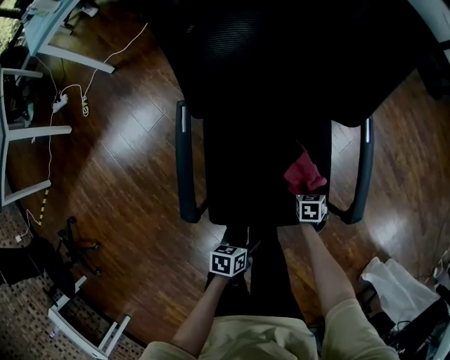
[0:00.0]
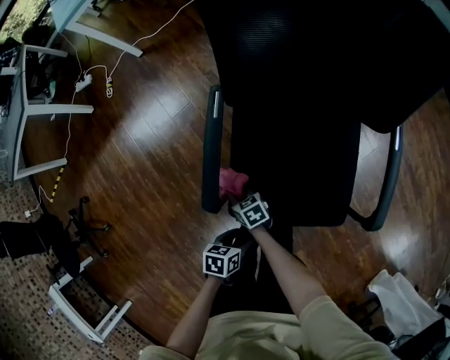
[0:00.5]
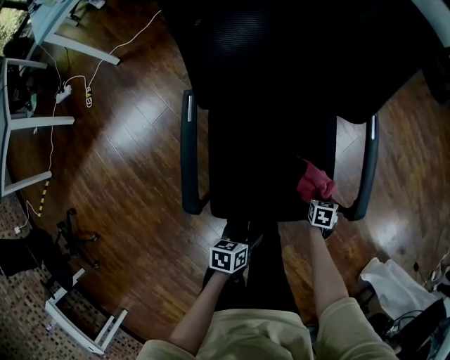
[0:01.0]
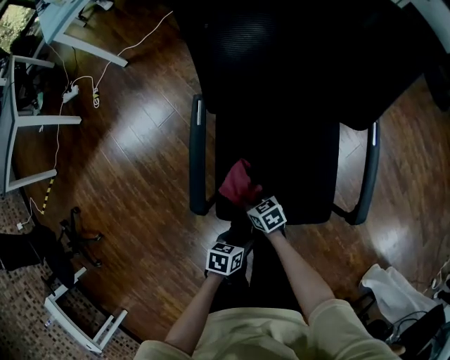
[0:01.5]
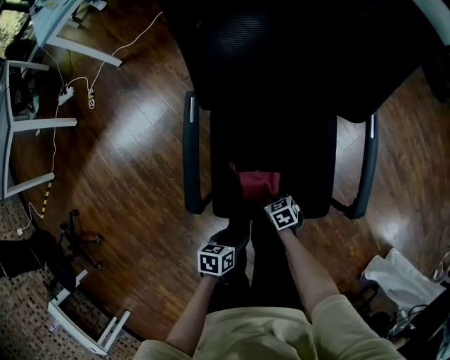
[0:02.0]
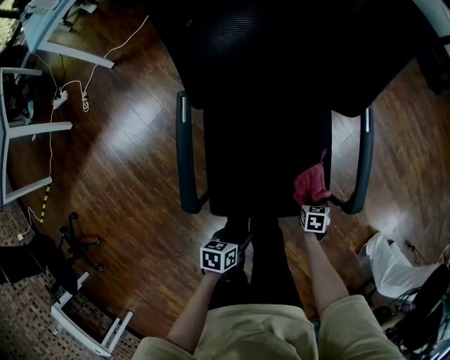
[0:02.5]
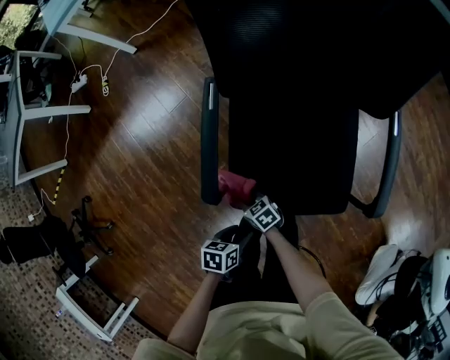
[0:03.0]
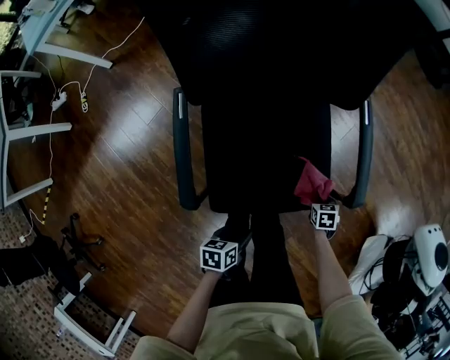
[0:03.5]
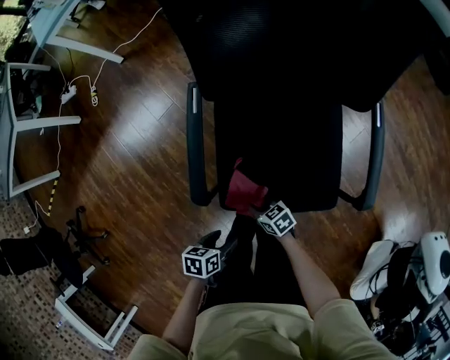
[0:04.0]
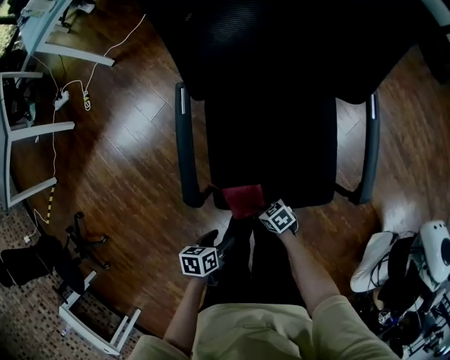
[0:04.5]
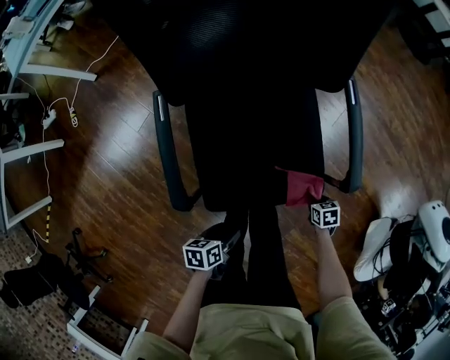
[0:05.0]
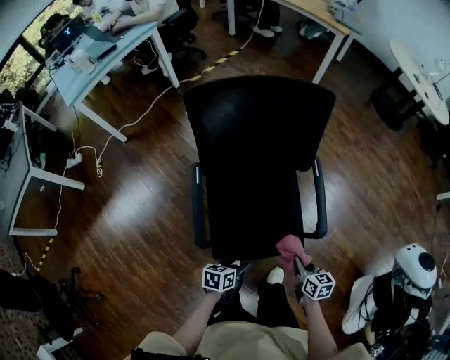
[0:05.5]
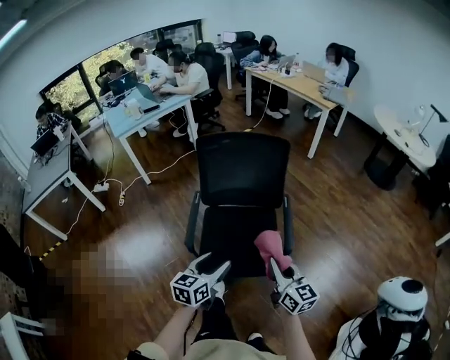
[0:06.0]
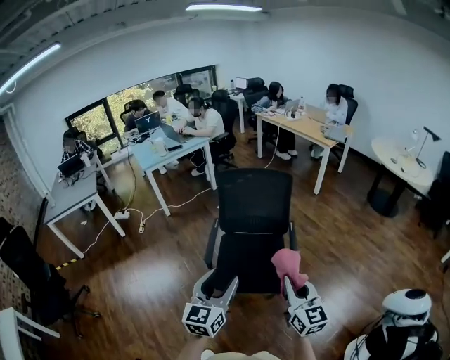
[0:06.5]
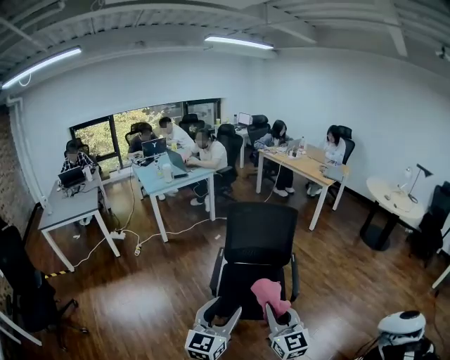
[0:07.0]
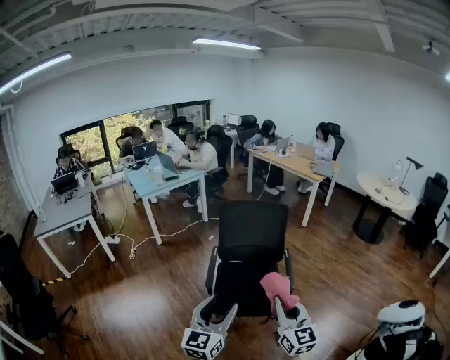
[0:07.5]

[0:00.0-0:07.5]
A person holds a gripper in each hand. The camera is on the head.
0:00.0 to 0:02.0: The right gripper rotates about 30 degrees. The left gripper changes place by some 5 cm.
0:02.0 to 0:04.0: The left gripper ends up roughly 5 cm from where it was. Meanwhile the right gripper swivels approximately 30 degrees.
0:04.0 to 0:05.5: The right gripper shifts by approximately 30 cm, and rotates approximately 50 degrees. The left gripper shifts by approximately 15 cm, and changes its angle by some 20 degrees.
0:05.5 to 0:07.5: Both grippers move upward and backward, some 50 cm. The left gripper tilts its fingers roughly 50 degrees upward. Meanwhile the right gripper tips its fingers upward by approximately 50 degrees.

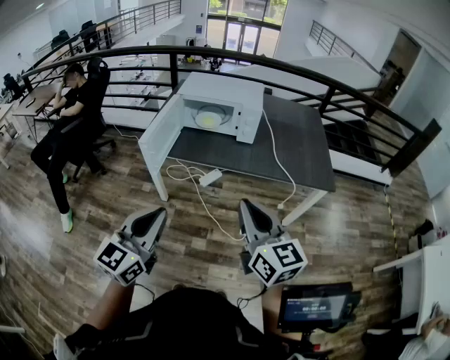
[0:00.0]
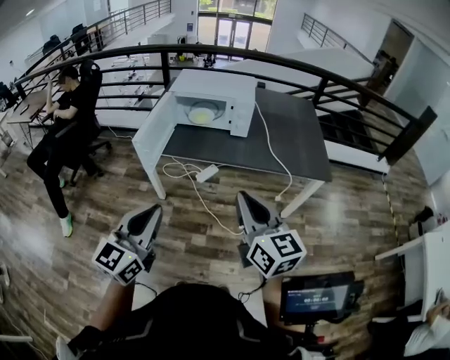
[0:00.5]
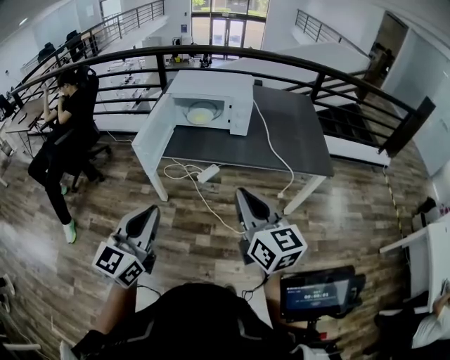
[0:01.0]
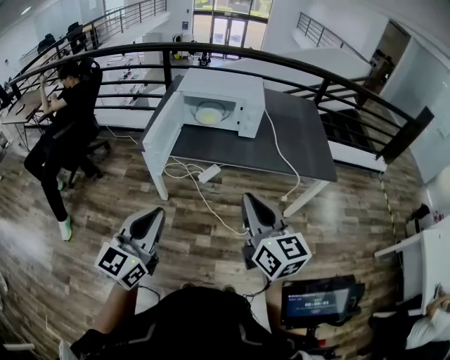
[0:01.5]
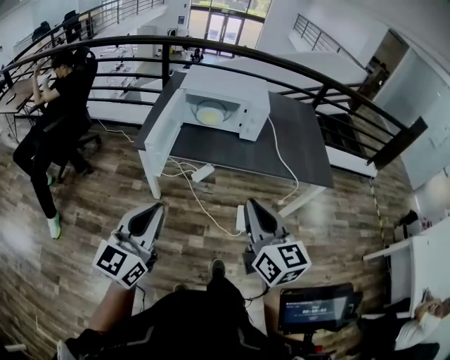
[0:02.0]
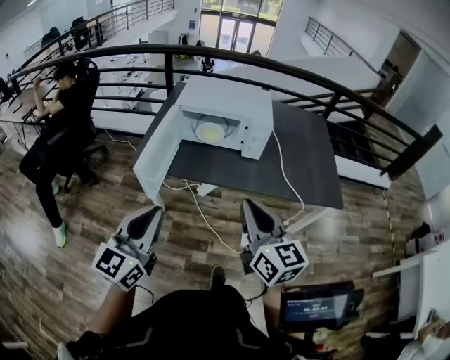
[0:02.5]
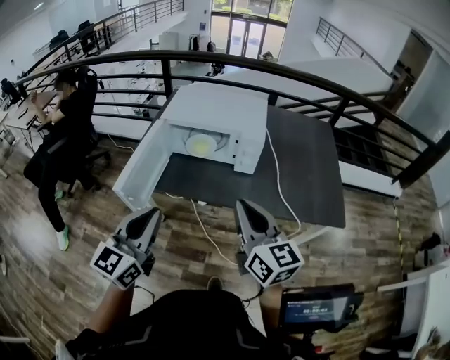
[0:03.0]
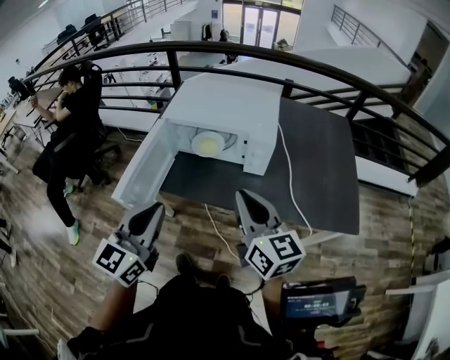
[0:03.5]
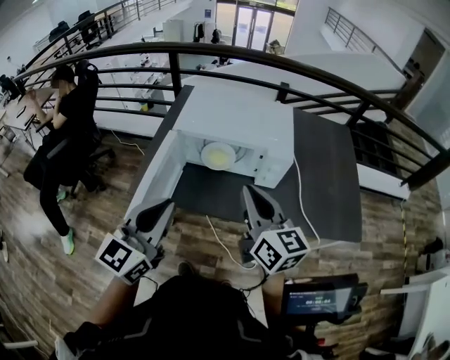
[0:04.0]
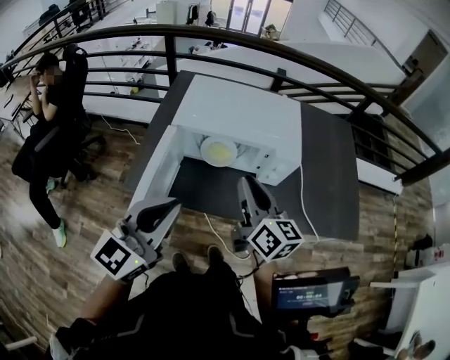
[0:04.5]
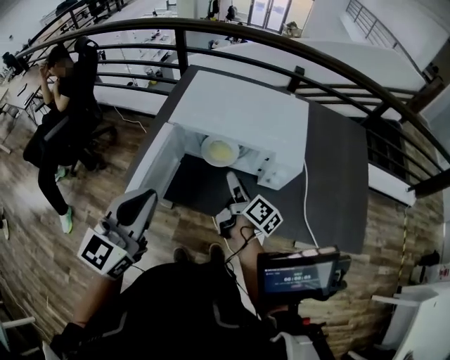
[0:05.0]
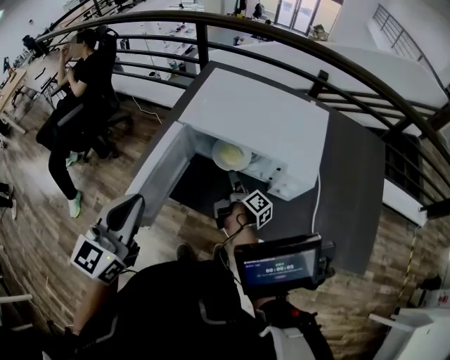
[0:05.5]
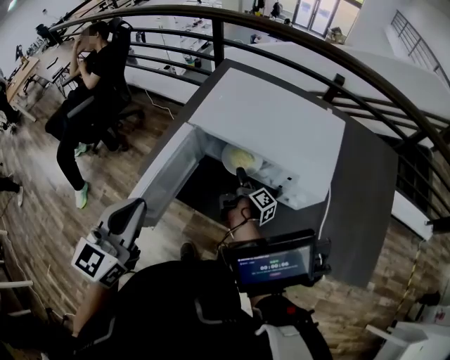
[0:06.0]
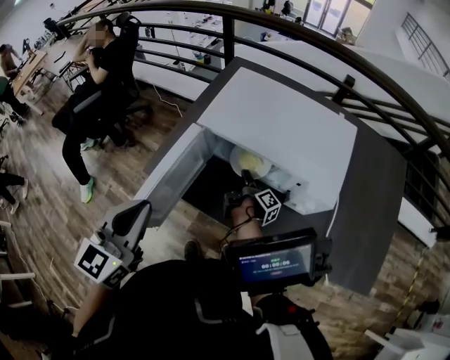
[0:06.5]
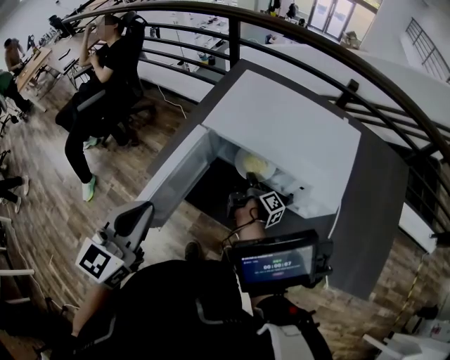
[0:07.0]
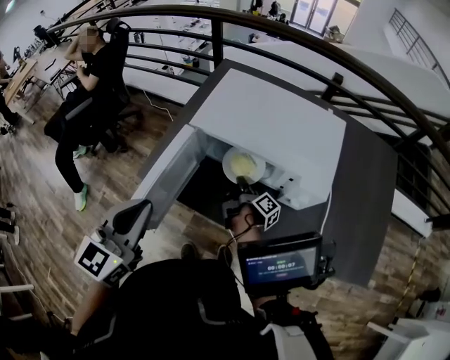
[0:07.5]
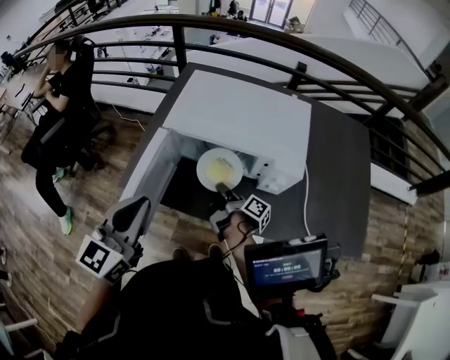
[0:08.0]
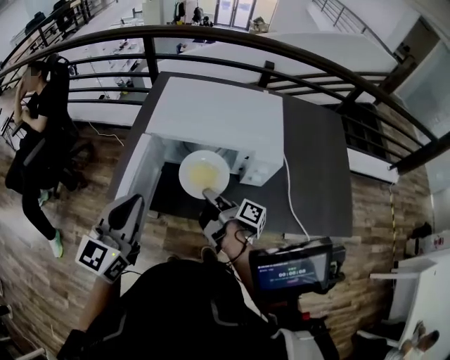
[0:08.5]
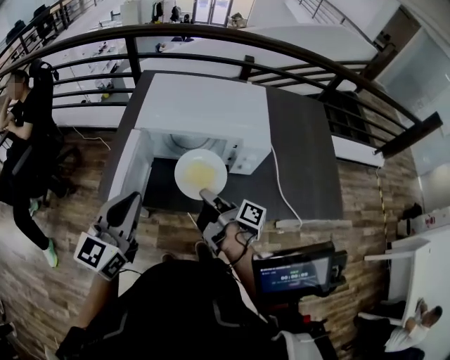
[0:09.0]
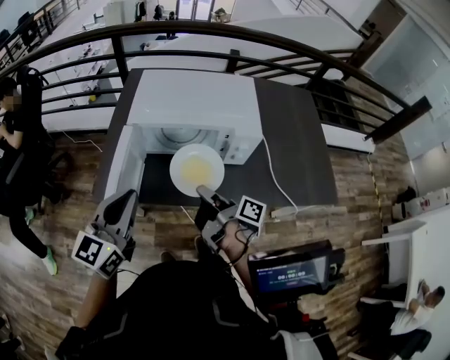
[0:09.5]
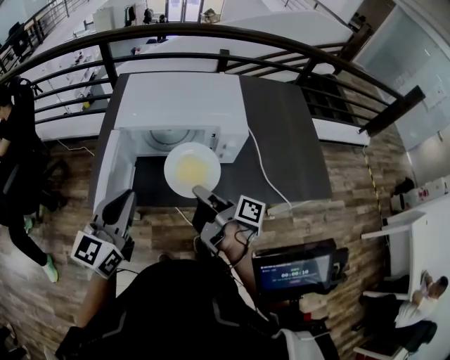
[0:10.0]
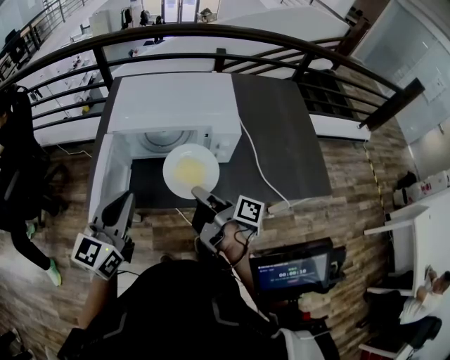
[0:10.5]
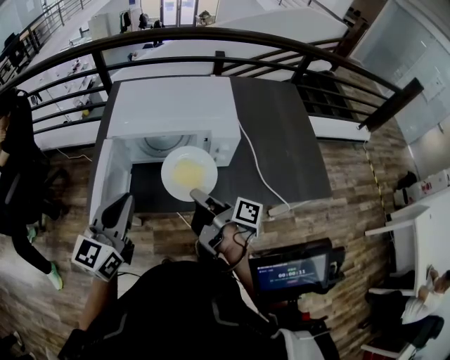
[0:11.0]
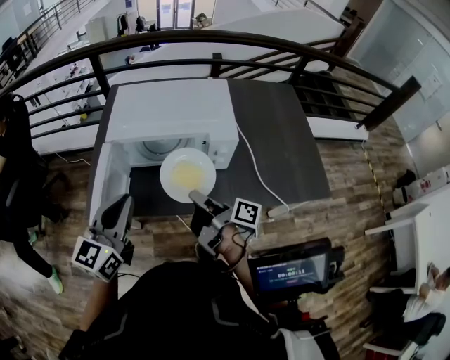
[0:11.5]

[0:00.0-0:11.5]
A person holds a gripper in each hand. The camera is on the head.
0:00.0 to 0:02.0: The grippers both shift to the left by roughly 10 cm.
0:02.0 to 0:04.0: The two grippers go roughly 35 cm forward.
0:04.0 to 0:06.0: The right gripper travels downward and forward by about 40 cm, rolls clockwise, seen from behind, by some 80 degrees, and opens its fingers. Meanwhile the left gripper is displaced forward and to the left by some 10 cm, and rotates about 20 degrees.
0:06.0 to 0:07.5: The right gripper closes.
0:07.5 to 0:09.5: The left gripper turns by roughly 20 degrees. Meanwhile the right gripper goes some 25 cm backward and upward.
0:09.5 to 0:11.5: The left gripper goes roughly 5 cm to the right.

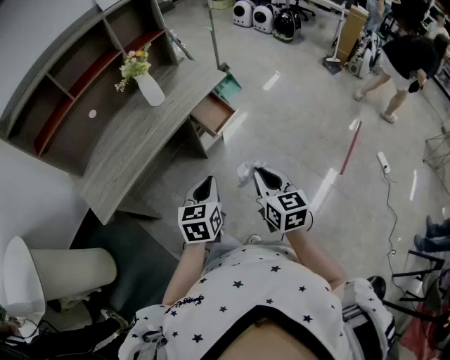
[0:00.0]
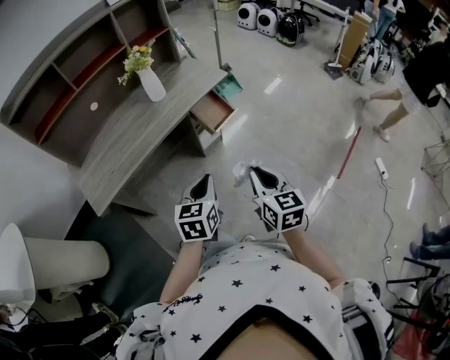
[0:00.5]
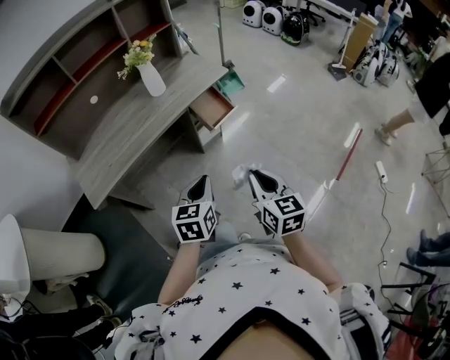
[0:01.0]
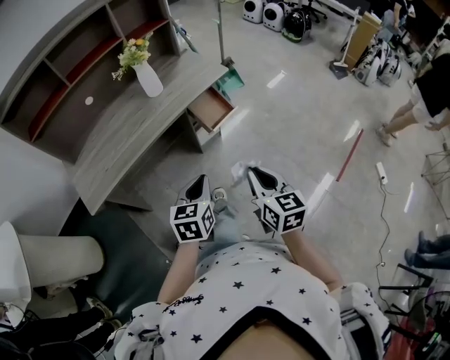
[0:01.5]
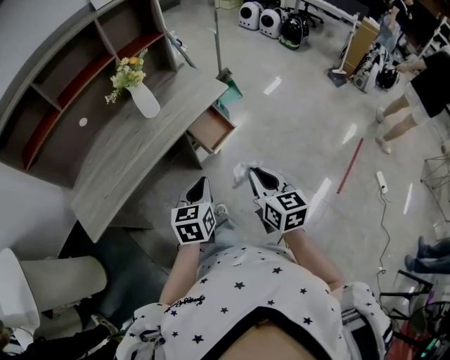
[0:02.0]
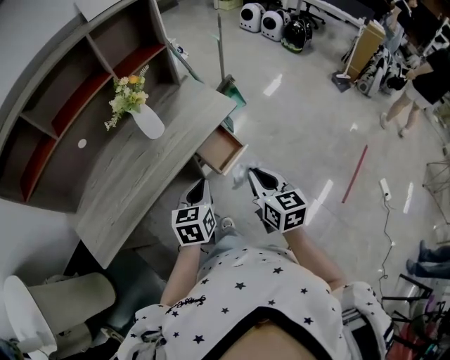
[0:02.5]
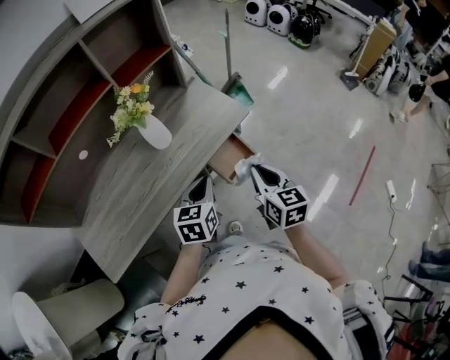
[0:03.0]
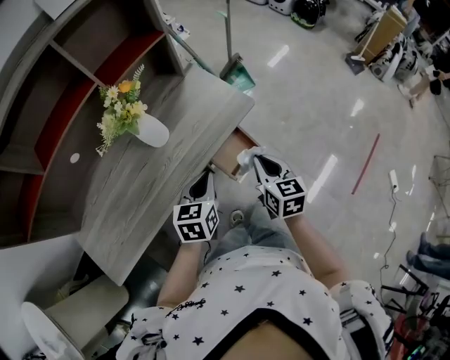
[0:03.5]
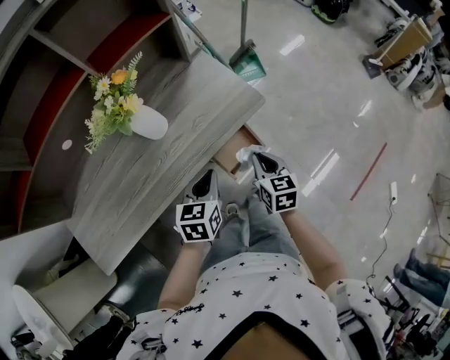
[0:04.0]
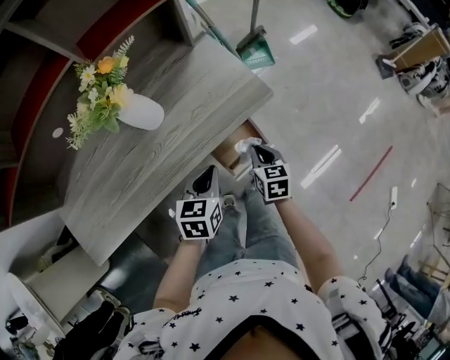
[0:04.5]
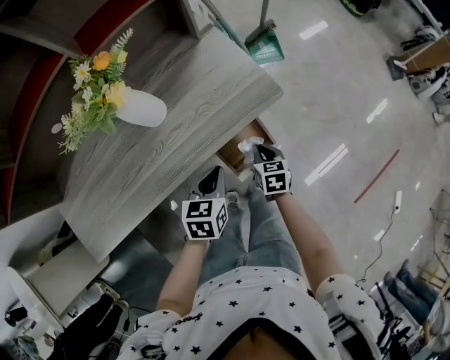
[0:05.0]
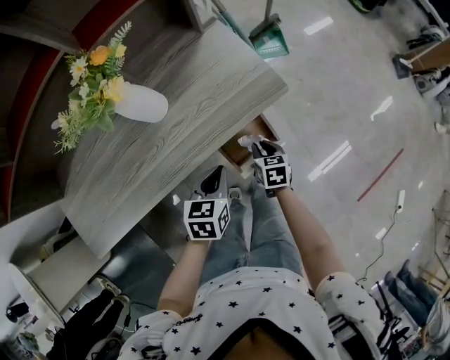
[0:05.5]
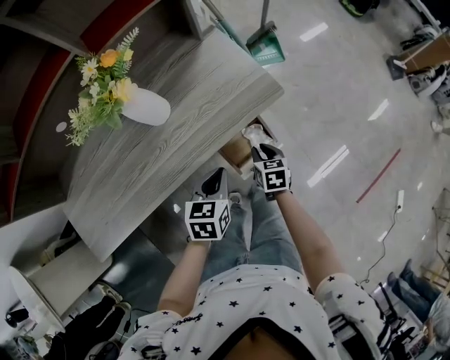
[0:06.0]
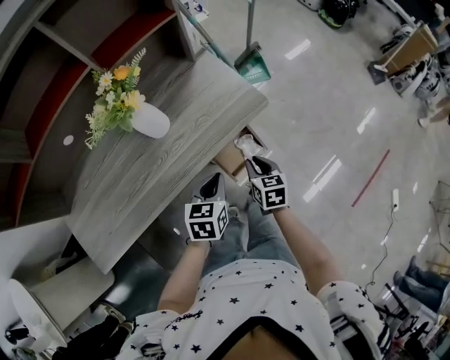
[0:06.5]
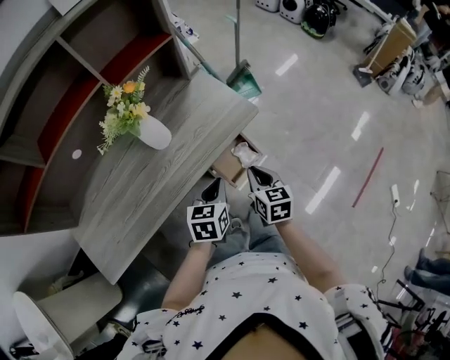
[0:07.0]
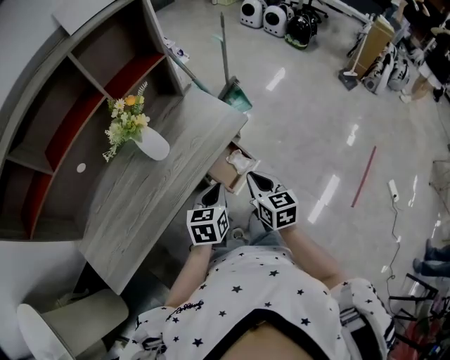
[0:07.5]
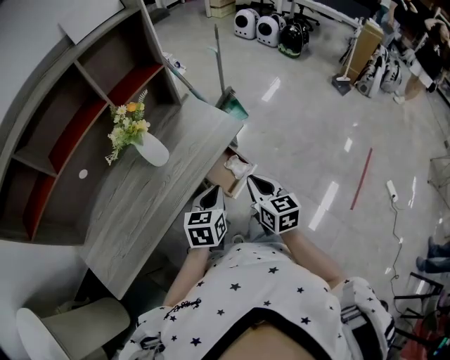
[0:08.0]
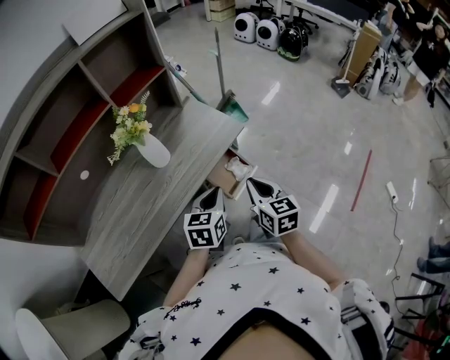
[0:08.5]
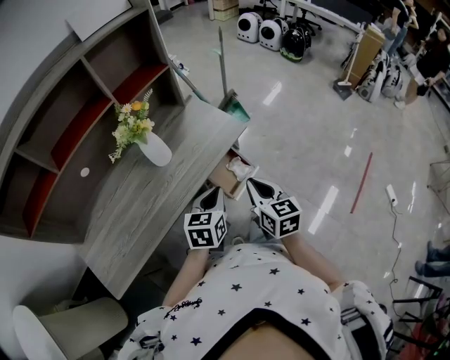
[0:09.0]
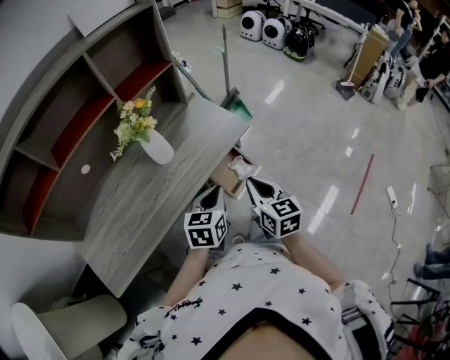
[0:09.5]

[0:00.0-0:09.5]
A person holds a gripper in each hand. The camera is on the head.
0:00.0 to 0:02.0: Both grippers travel together forward, some 10 cm.
0:02.0 to 0:04.0: The right gripper shifts roughly 35 cm forward and downward, while the left gripper is displaced forward by some 25 cm.
0:04.0 to 0:05.5: The right gripper goes about 15 cm downward. Meanwhile the left gripper moves downward, approximately 10 cm.
0:05.5 to 0:07.5: The left gripper travels upward and backward by approximately 15 cm, while the right gripper heads upward and backward, covering roughly 30 cm, and rotates some 30 degrees.
0:07.5 to 0:09.5: The right gripper changes place by some 5 cm.
